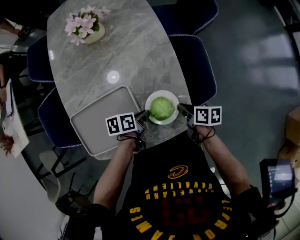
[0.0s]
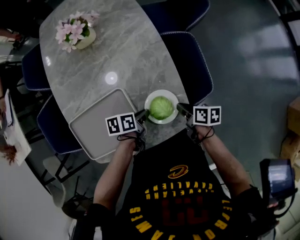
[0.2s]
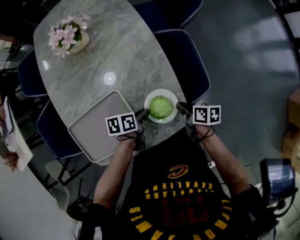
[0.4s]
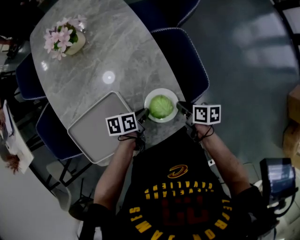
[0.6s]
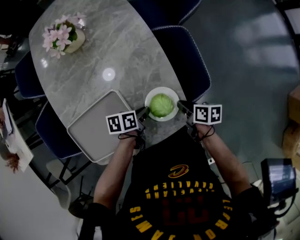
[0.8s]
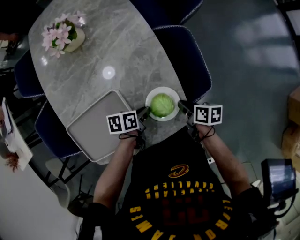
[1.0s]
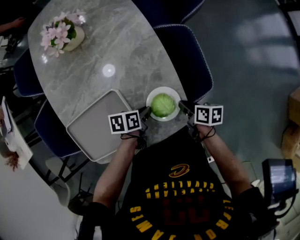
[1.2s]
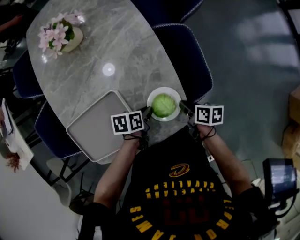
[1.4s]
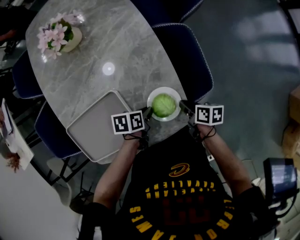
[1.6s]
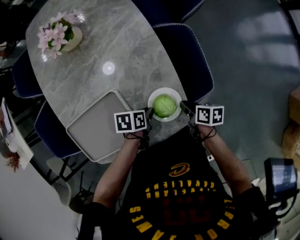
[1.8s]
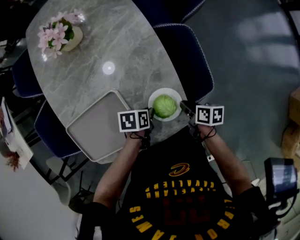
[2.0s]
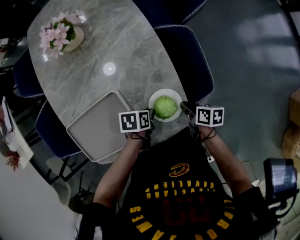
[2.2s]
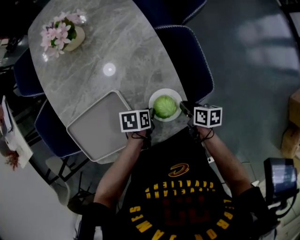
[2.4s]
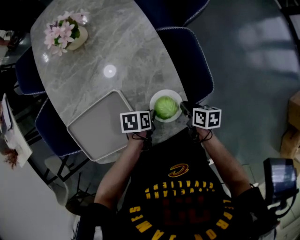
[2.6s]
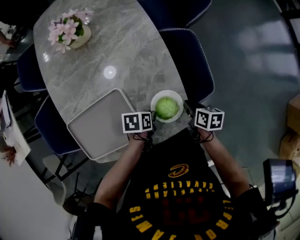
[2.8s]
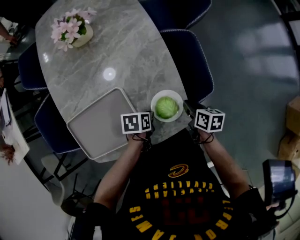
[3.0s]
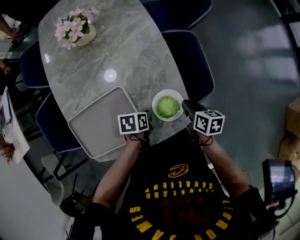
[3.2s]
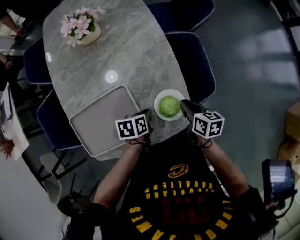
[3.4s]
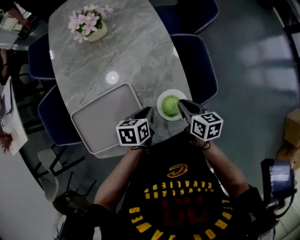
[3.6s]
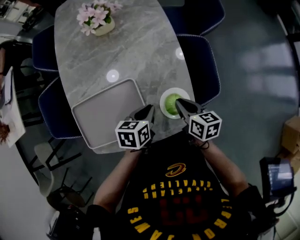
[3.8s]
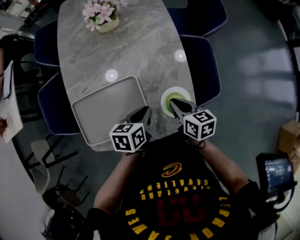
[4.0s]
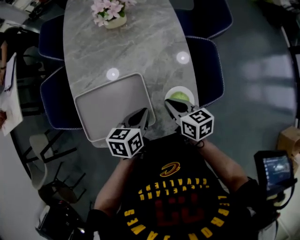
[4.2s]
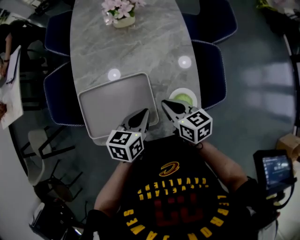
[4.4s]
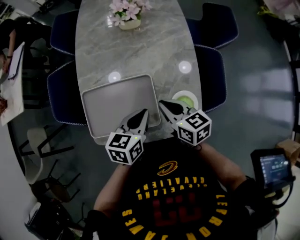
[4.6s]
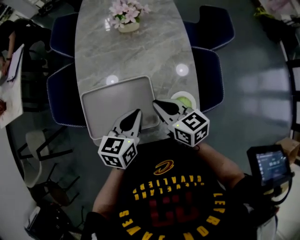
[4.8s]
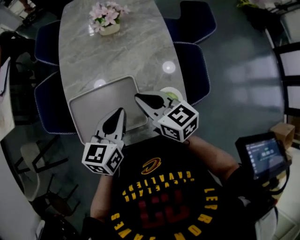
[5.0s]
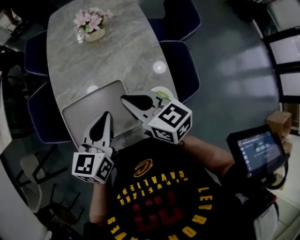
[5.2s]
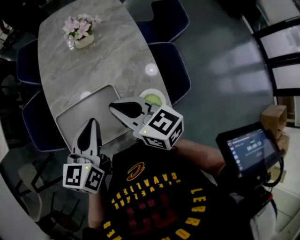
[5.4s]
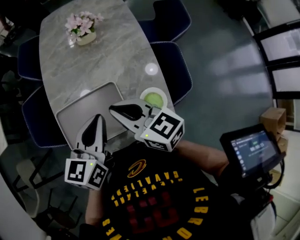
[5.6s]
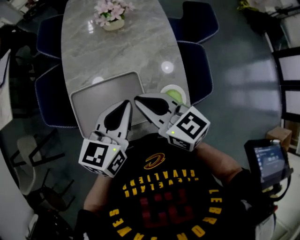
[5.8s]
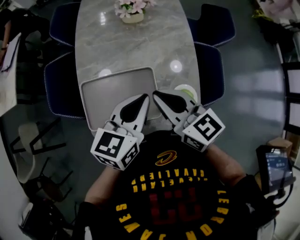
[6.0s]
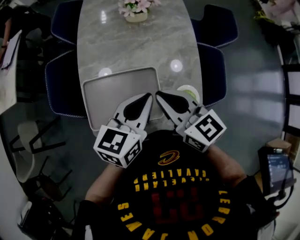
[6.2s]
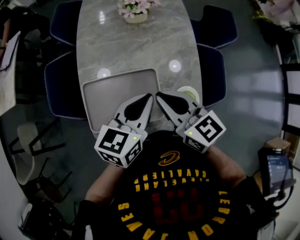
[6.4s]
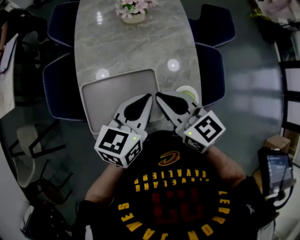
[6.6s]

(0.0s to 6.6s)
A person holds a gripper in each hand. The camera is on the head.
0.0s - 1.6s: The left gripper ends up about 5 cm from where it was. The right gripper changes place by approximately 5 cm.
1.6s - 3.2s: The right gripper heads upward, covering about 5 cm.
3.2s - 5.0s: The left gripper moves upward, about 25 cm, and angles its fingers upward, by approximately 40 degrees. Meanwhile the right gripper changes place by approximately 35 cm, and changes its angle by about 50 degrees.
5.0s - 6.6s: The right gripper changes place by some 5 cm.

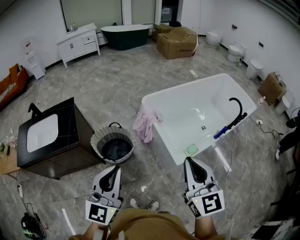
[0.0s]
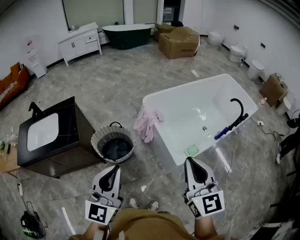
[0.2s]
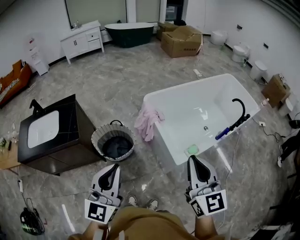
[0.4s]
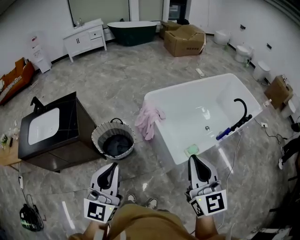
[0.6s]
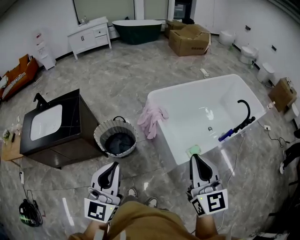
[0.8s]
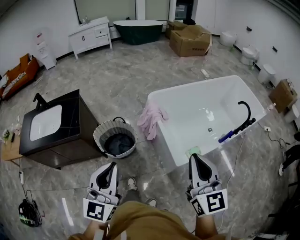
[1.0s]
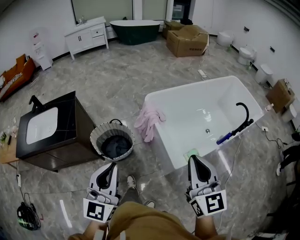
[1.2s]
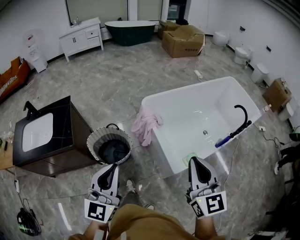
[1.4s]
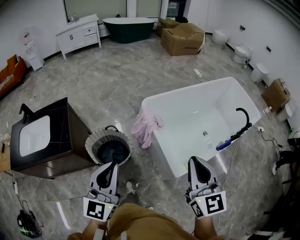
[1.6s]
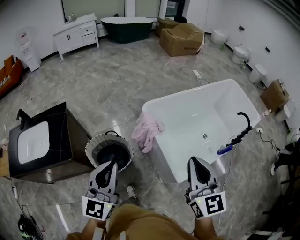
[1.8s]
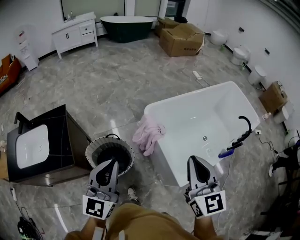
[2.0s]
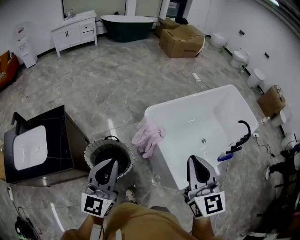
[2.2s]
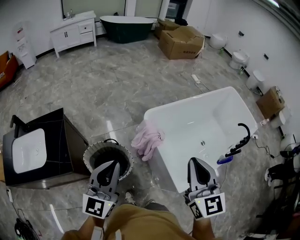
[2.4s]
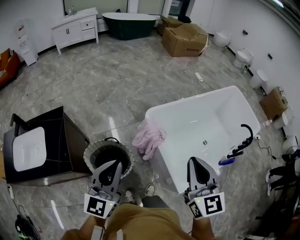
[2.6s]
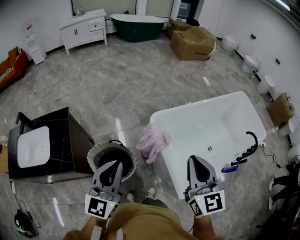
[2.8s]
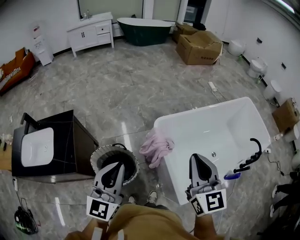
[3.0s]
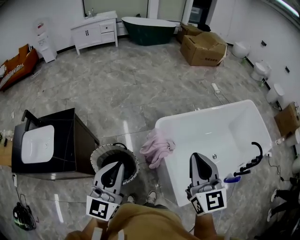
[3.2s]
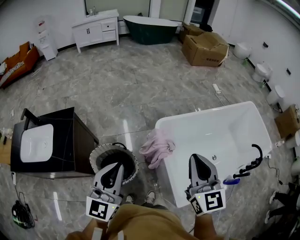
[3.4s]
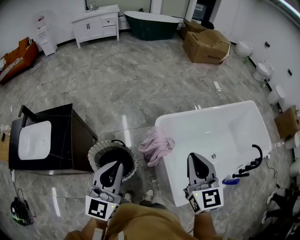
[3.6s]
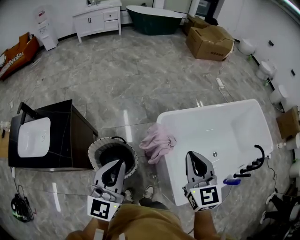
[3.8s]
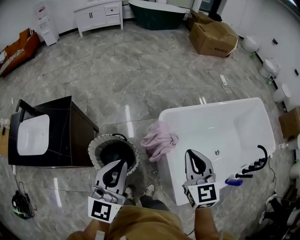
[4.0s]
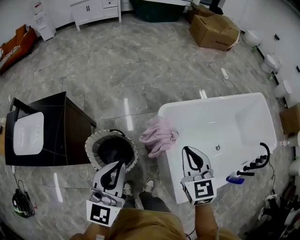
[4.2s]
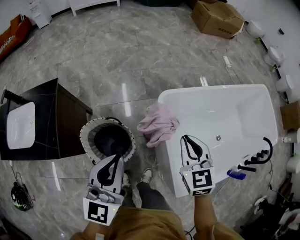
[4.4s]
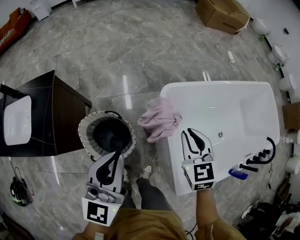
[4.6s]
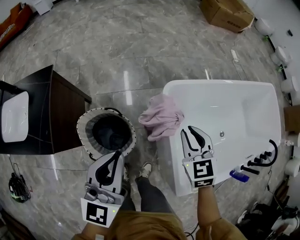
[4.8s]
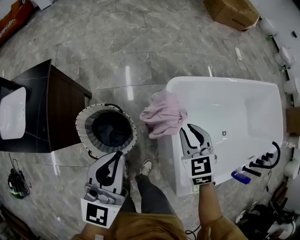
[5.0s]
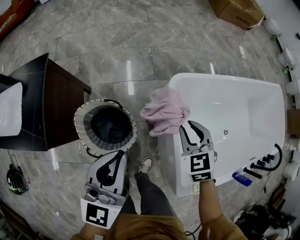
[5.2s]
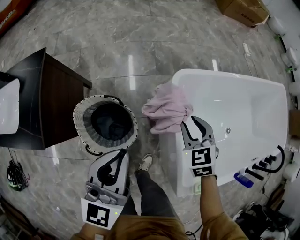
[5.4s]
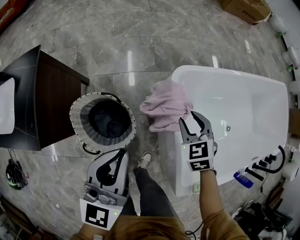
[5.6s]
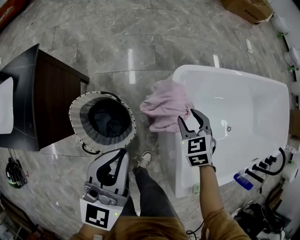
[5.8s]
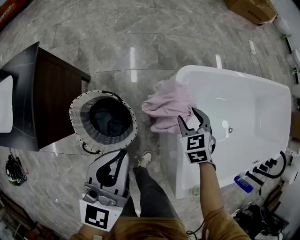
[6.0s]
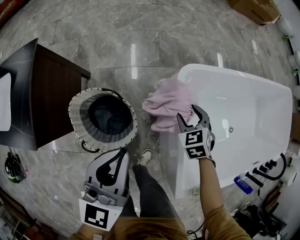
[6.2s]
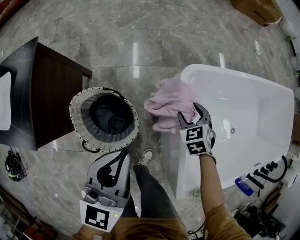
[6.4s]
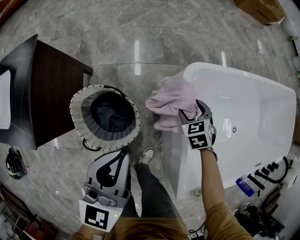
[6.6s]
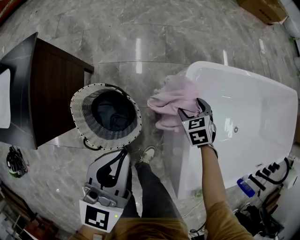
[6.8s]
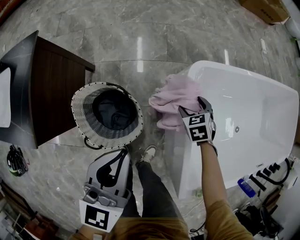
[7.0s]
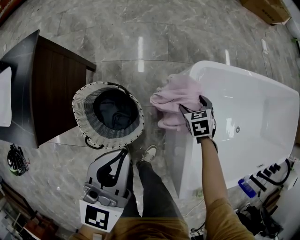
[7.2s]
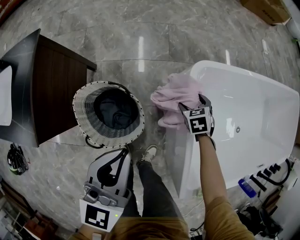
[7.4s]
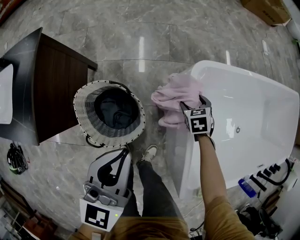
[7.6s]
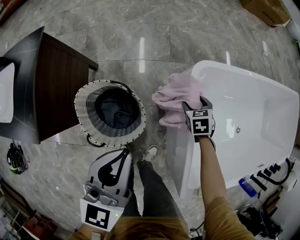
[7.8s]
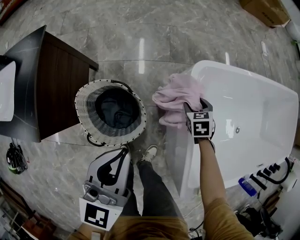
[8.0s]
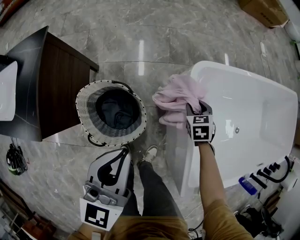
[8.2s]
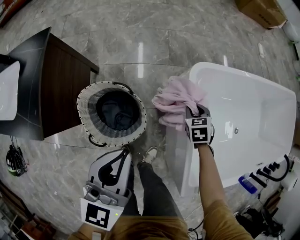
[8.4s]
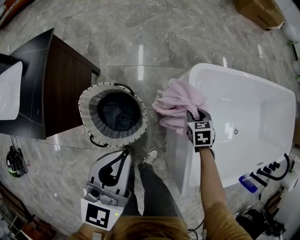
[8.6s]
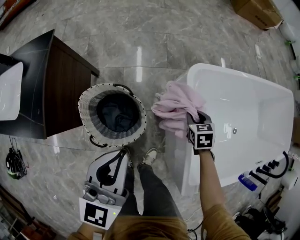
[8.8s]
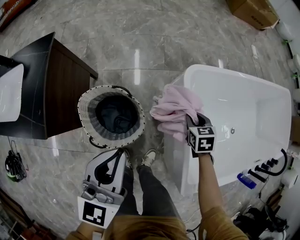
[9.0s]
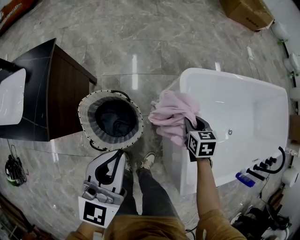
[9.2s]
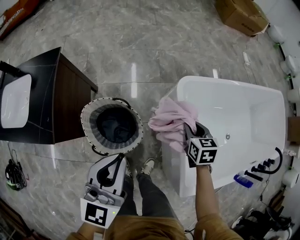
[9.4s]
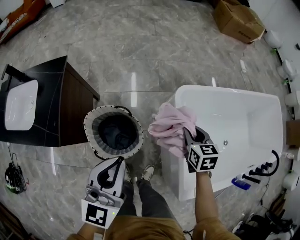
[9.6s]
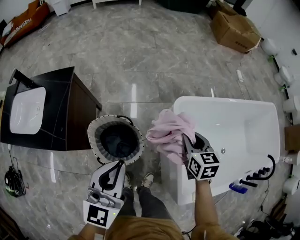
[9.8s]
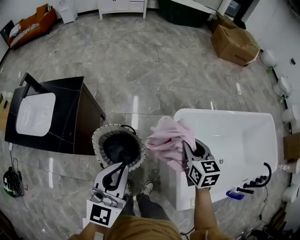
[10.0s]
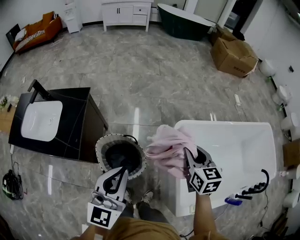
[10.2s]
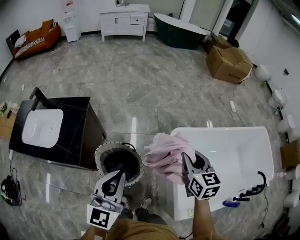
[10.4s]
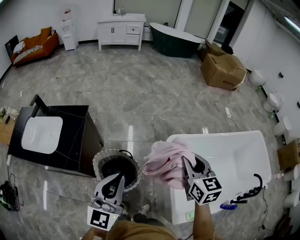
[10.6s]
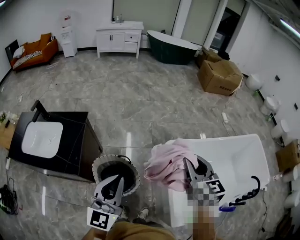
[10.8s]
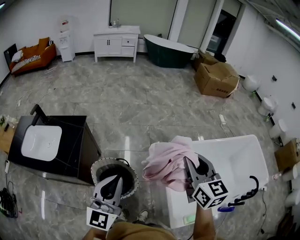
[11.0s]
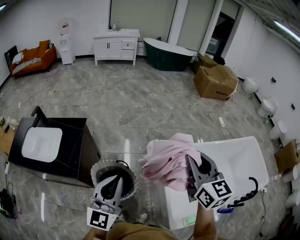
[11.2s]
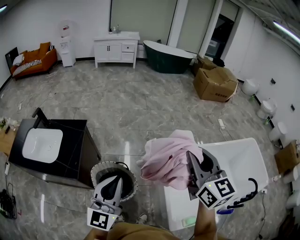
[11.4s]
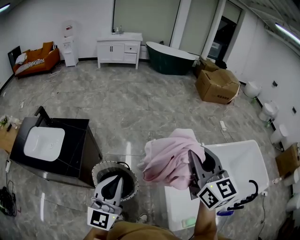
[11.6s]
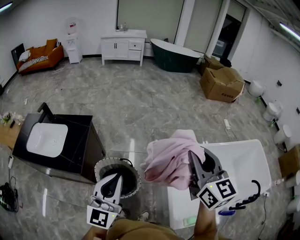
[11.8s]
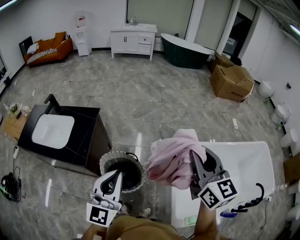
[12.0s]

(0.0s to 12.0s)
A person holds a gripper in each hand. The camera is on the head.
0.0s - 1.6s: Both grippers move forward, about 15 cm.
1.6s - 3.0s: The grippers both shift forward by roughly 20 cm.
3.0s - 4.4s: The right gripper goes roughly 25 cm downward and forward, and turns by some 30 degrees. The left gripper heads downward and forward, covering about 15 cm.
4.4s - 6.0s: The right gripper moves downward, approximately 30 cm, swivels about 30 degrees, and opens up. The left gripper goes some 15 cm downward.
6.0s - 7.6s: The right gripper goes roughly 15 cm downward, and opens its fingers.
7.6s - 9.0s: The right gripper heads upward and backward, covering approximately 10 cm, and closes up, while the left gripper changes place by roughly 5 cm.
9.0s - 10.4s: The left gripper travels upward by roughly 20 cm. Meanwhile the right gripper shifts roughly 40 cm upward, and tips its fingers upward by approximately 30 degrees.
10.4s - 12.0s: The left gripper heads upward, covering roughly 5 cm; the right gripper goes some 20 cm upward, and turns by some 20 degrees.

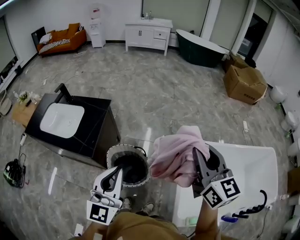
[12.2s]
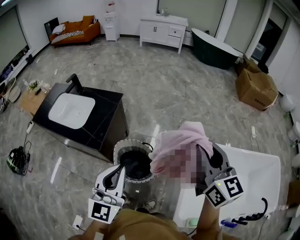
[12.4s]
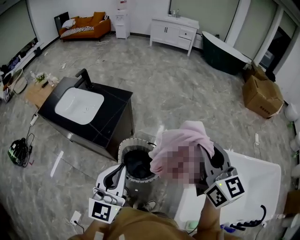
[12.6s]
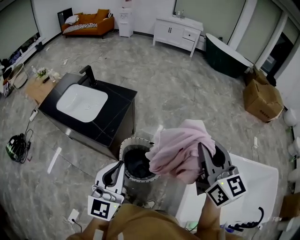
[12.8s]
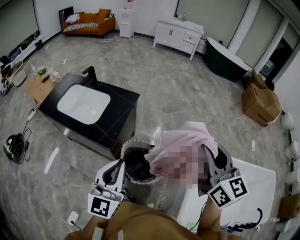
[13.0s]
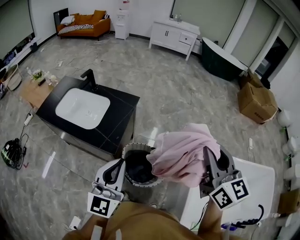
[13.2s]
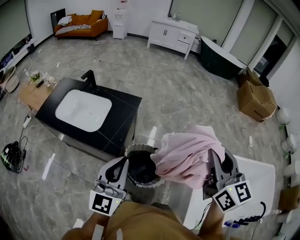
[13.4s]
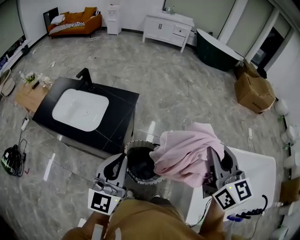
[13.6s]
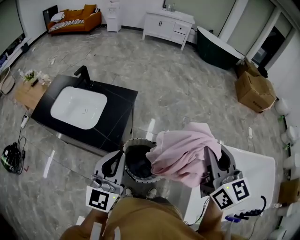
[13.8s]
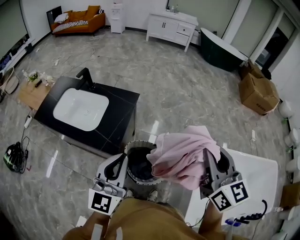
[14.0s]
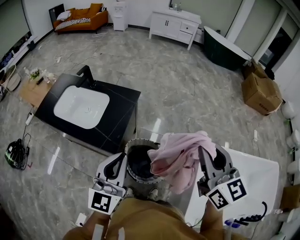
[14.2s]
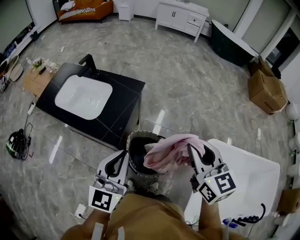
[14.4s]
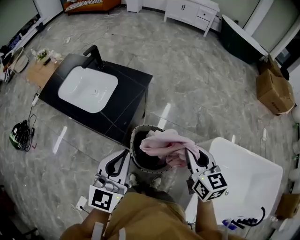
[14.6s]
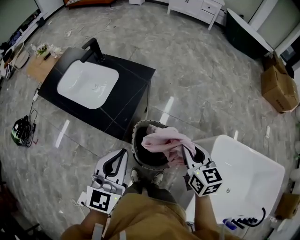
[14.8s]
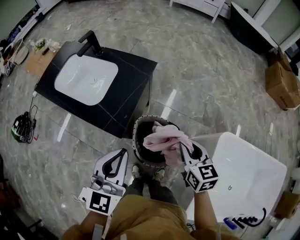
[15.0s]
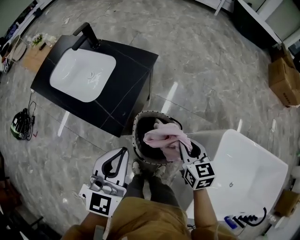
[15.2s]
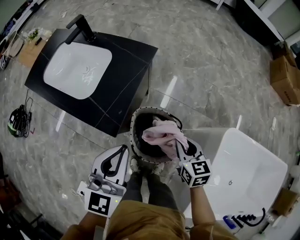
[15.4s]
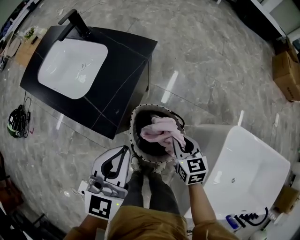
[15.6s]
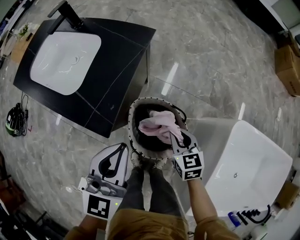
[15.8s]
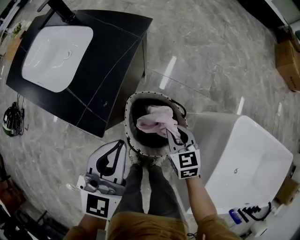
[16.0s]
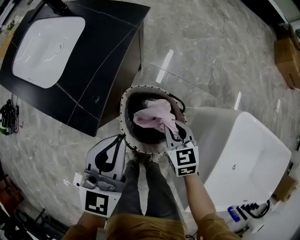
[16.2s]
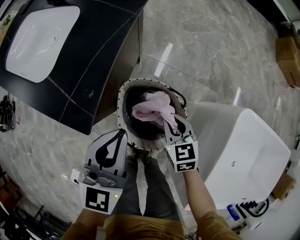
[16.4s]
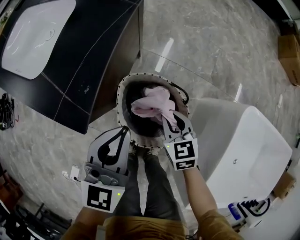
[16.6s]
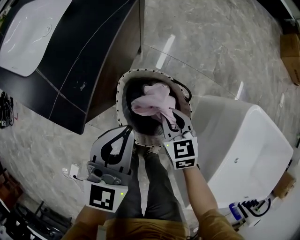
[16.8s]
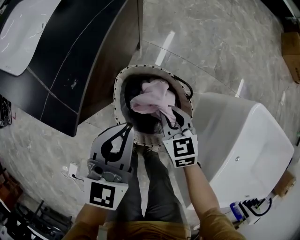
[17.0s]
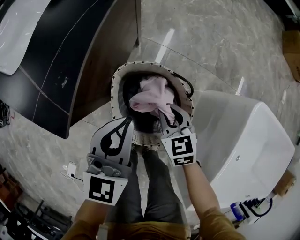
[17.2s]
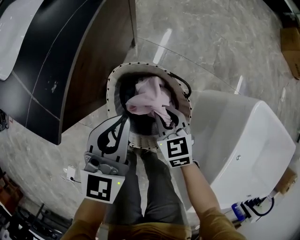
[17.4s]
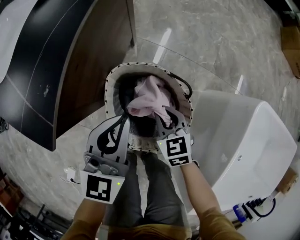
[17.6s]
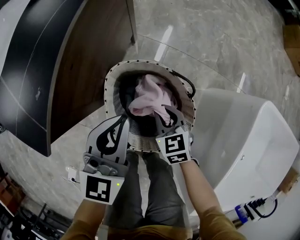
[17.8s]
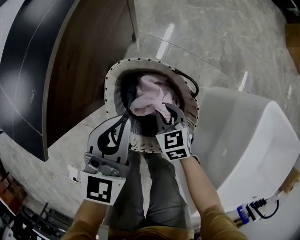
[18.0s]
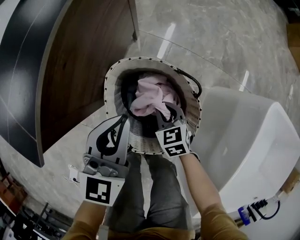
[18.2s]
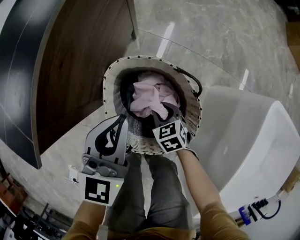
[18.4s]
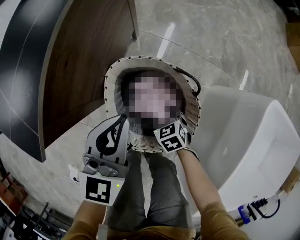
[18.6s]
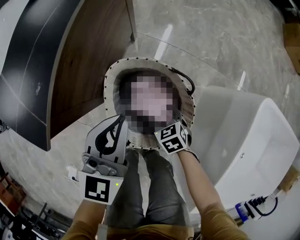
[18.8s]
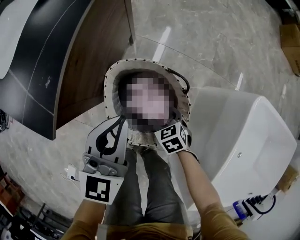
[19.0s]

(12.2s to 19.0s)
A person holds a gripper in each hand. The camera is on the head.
12.2s - 13.6s: The grippers both shift to the left by some 20 cm.
13.6s - 15.0s: The left gripper is displaced downward by about 10 cm, while the right gripper travels downward by roughly 30 cm, and swivels some 30 degrees.
15.0s - 16.2s: The grippers both shift downward by about 25 cm.
16.2s - 17.6s: Both grippers move downward, about 15 cm.
17.6s - 19.0s: The right gripper heads downward and backward, covering about 10 cm, rotates some 20 degrees, and opens.
